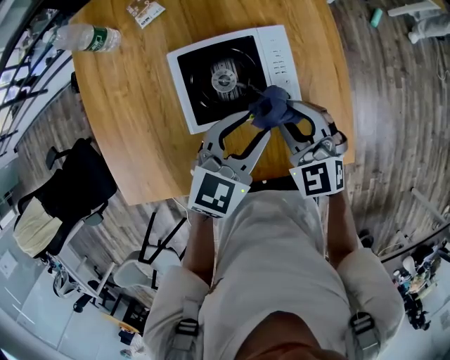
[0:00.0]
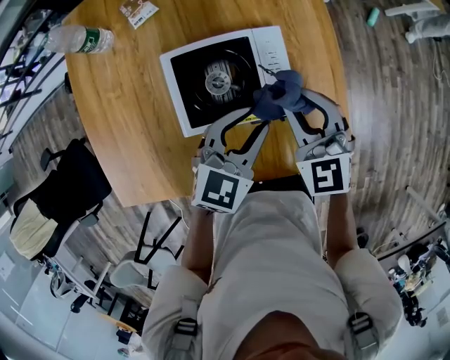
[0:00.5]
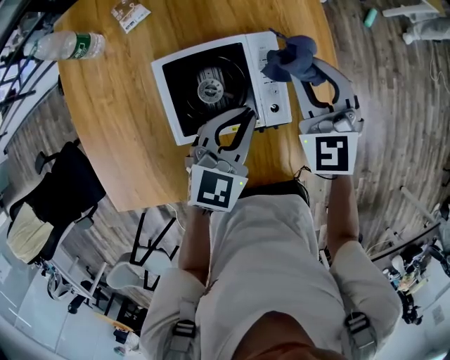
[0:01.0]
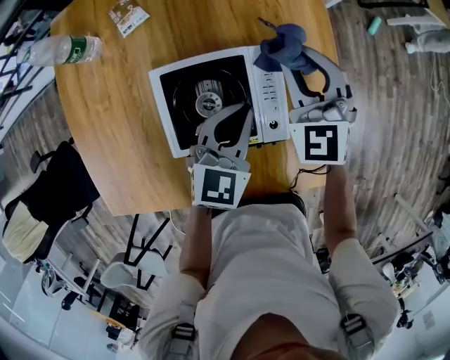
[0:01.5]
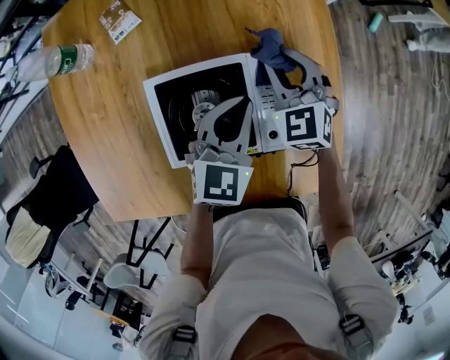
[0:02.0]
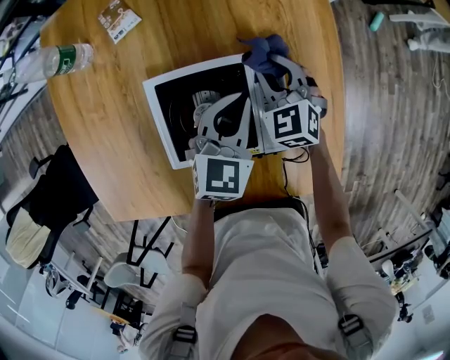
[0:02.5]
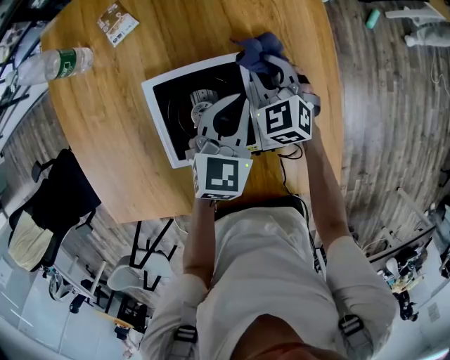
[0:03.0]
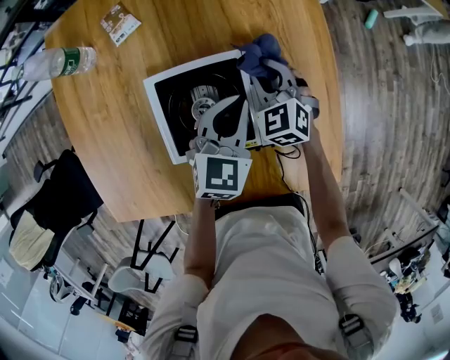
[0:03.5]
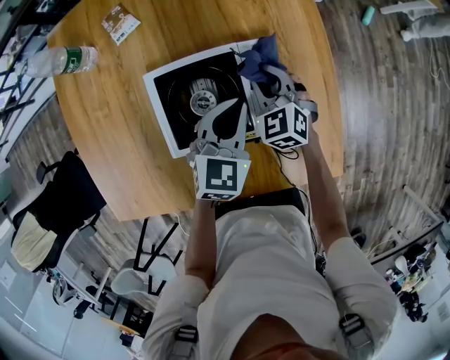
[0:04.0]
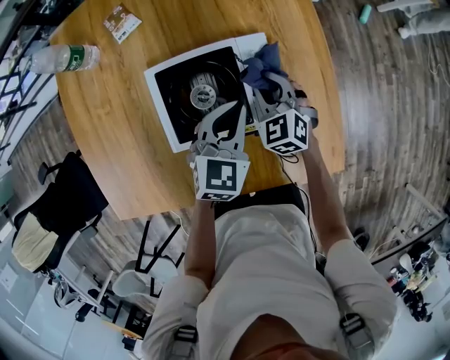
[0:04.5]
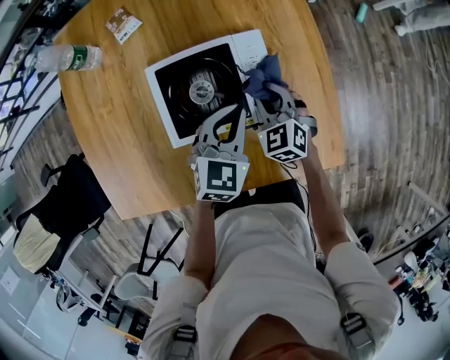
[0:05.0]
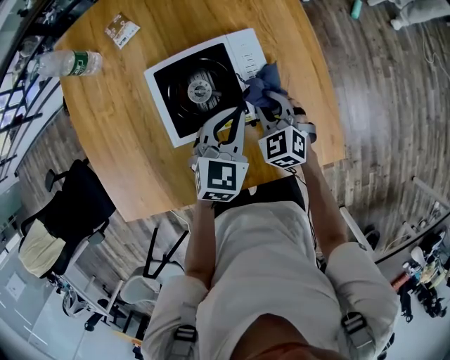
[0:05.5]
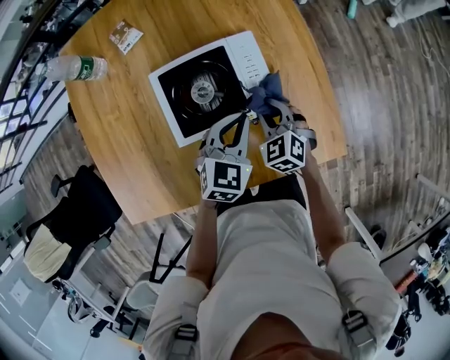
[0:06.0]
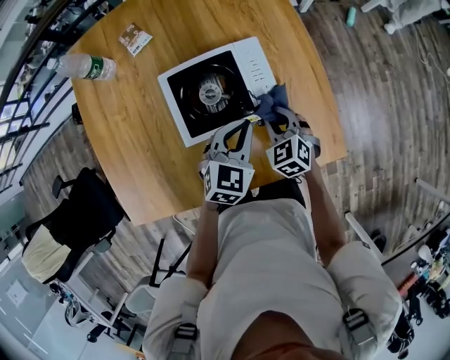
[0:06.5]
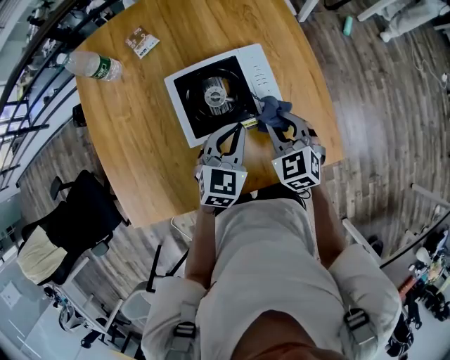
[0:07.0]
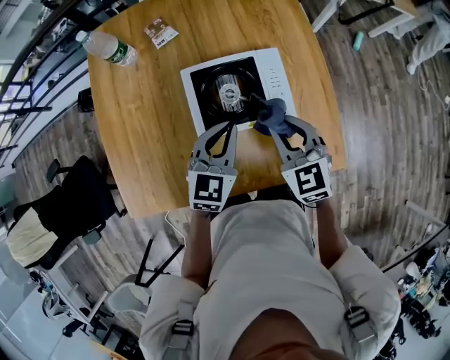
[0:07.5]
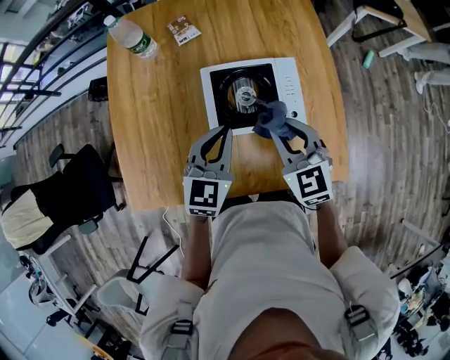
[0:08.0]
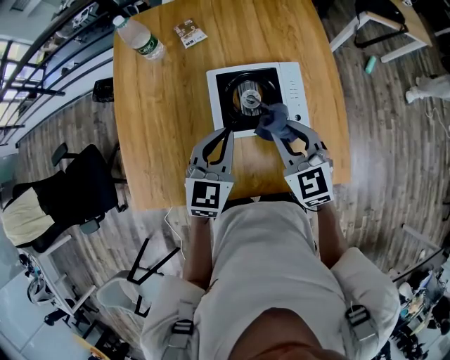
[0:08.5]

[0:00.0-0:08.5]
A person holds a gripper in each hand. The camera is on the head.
0:00.0 to 0:02.0: The right gripper goes some 20 cm forward. Meanwhile the left gripper moves forward and downward, some 15 cm, and closes its fingers.
0:02.0 to 0:04.0: The right gripper is displaced backward by about 5 cm.
0:04.0 to 0:06.5: Both grippers travel together backward, about 15 cm.
0:06.5 to 0:08.5: The left gripper heads to the left and upward, covering roughly 20 cm, and turns by roughly 20 degrees. Meanwhile the right gripper goes approximately 20 cm upward and to the left, and turns by approximately 20 degrees.

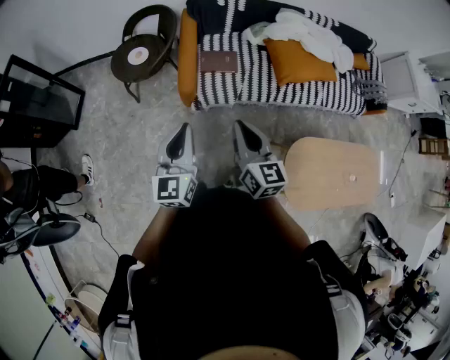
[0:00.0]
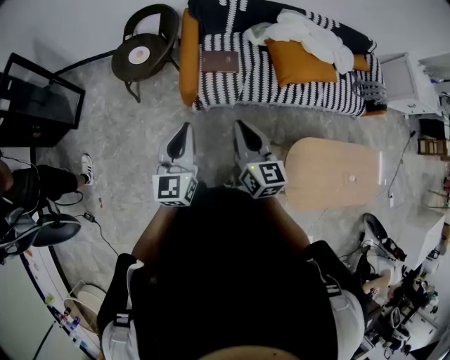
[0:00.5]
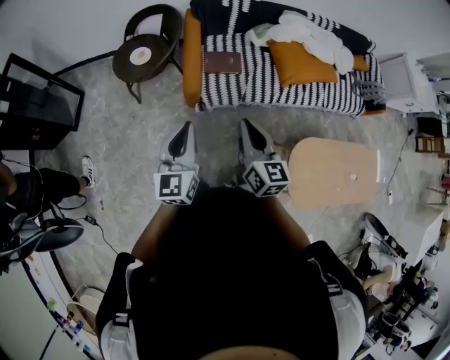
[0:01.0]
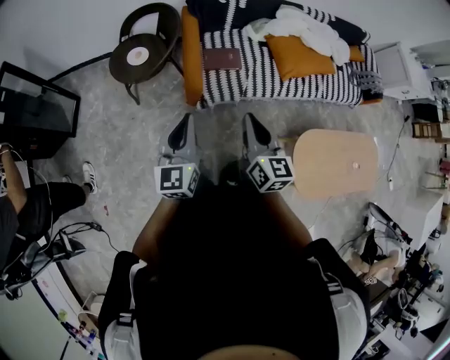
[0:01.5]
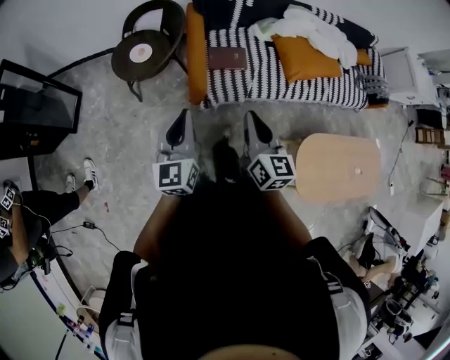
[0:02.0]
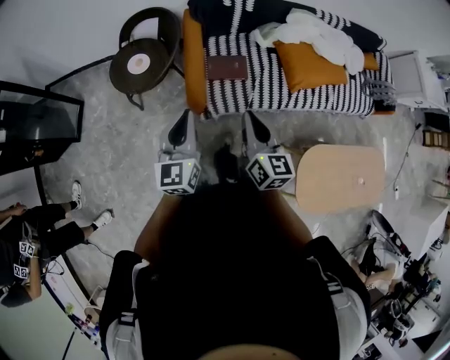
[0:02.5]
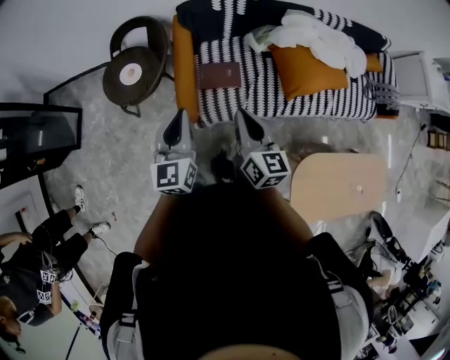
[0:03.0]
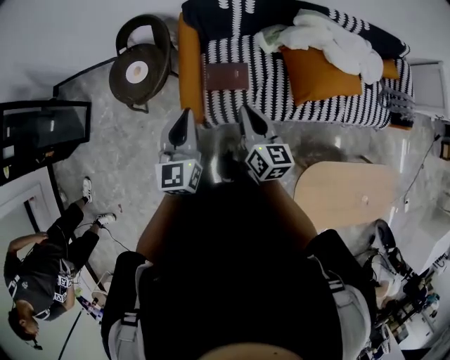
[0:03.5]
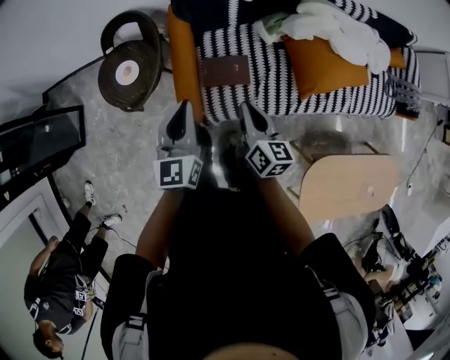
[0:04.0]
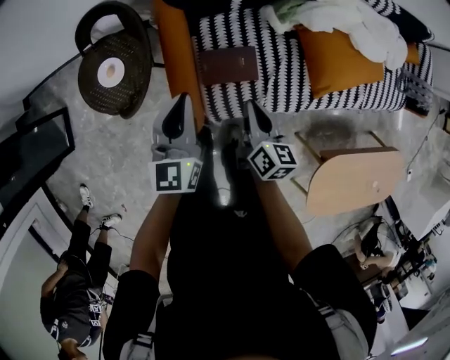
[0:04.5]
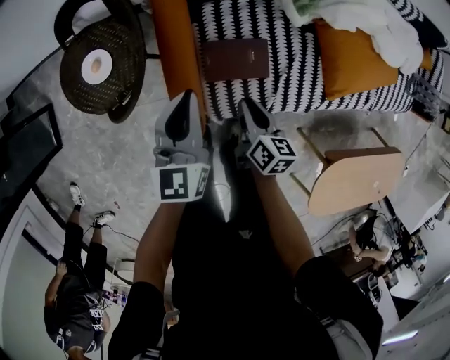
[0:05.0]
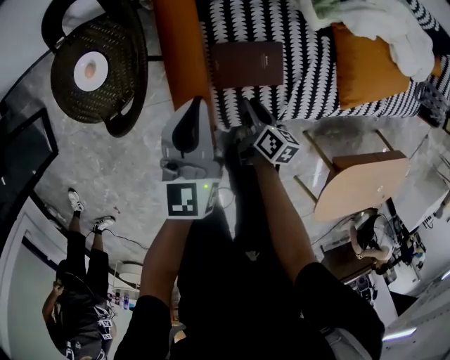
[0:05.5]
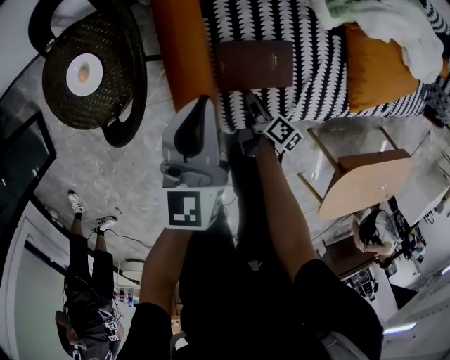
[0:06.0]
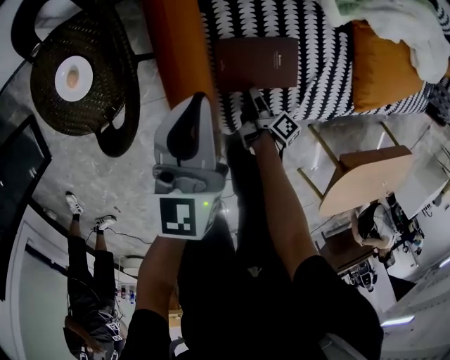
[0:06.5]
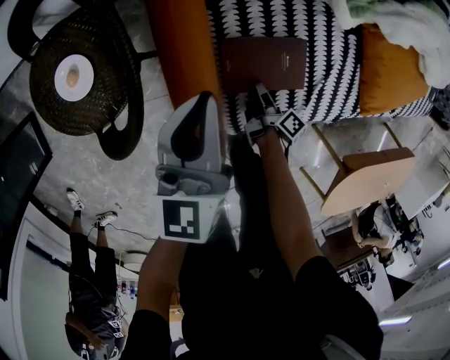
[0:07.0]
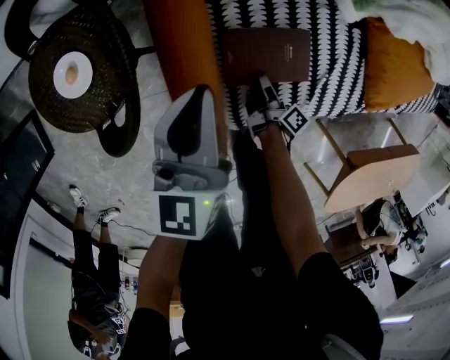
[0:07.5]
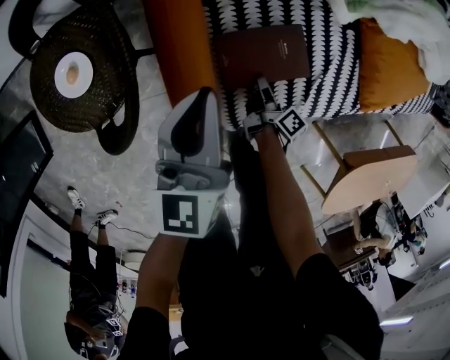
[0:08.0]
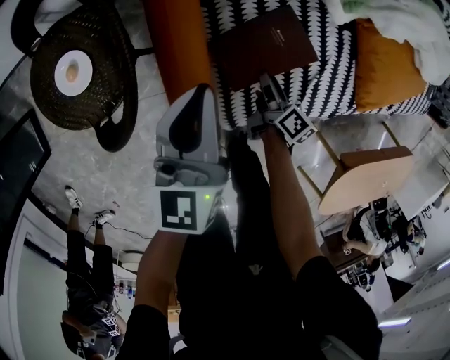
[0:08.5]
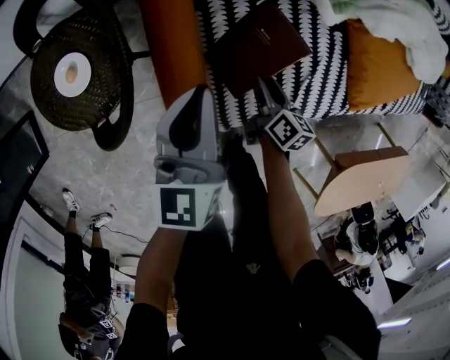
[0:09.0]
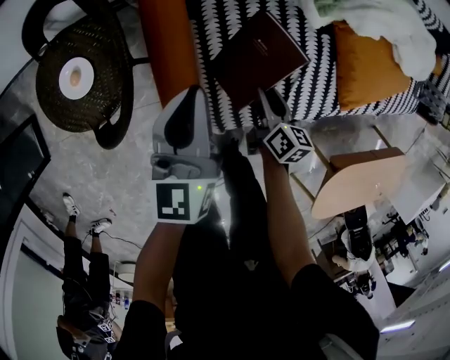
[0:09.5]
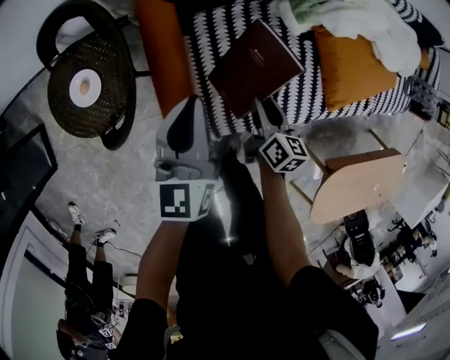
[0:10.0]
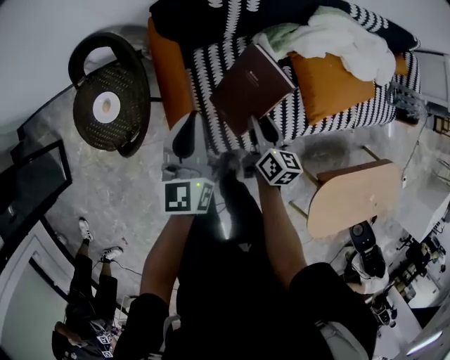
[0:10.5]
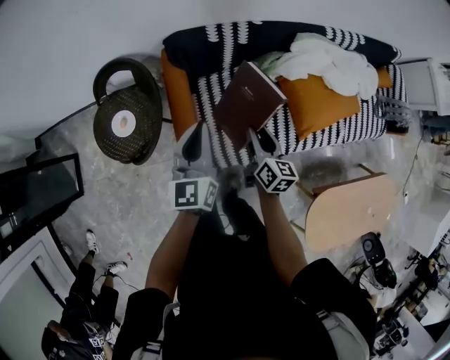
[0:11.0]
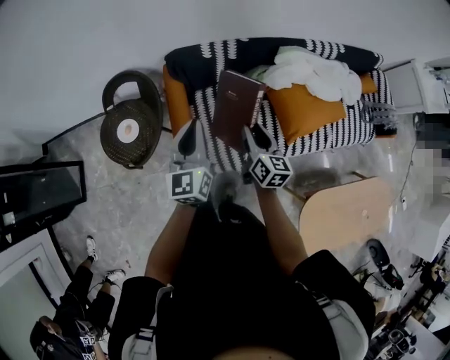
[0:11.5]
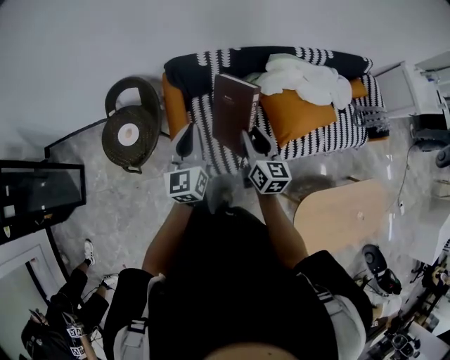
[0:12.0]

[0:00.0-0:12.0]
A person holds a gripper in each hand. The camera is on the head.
0:00.0 to 0:02.0: Both grippers travel together to the left and forward, about 10 cm.
0:02.0 to 0:04.0: The right gripper travels forward and downward by about 35 cm, and turns by some 20 degrees. Meanwhile the left gripper heads forward and to the right, covering roughly 35 cm.
0:04.0 to 0:06.0: The right gripper goes some 50 cm downward, rotates about 50 degrees, and opens, while the left gripper goes about 30 cm downward and forward.
0:06.0 to 0:08.0: The right gripper changes place by some 5 cm.
0:08.0 to 0:10.0: The left gripper moves upward, approximately 10 cm. The right gripper is displaced upward by approximately 20 cm, and rolls counterclockwise, seen from behind, by about 40 degrees.
0:10.0 to 0:12.0: The right gripper travels upward by about 40 cm, and rotates approximately 30 degrees. Meanwhile the left gripper travels upward and backward by some 30 cm.

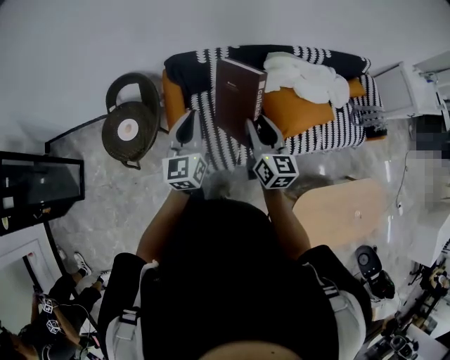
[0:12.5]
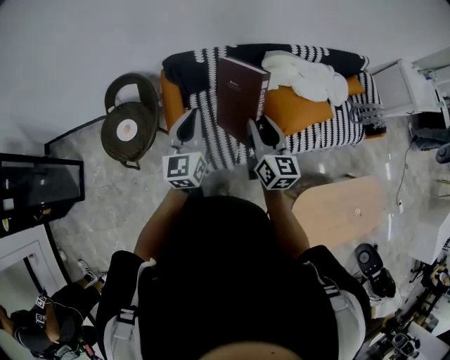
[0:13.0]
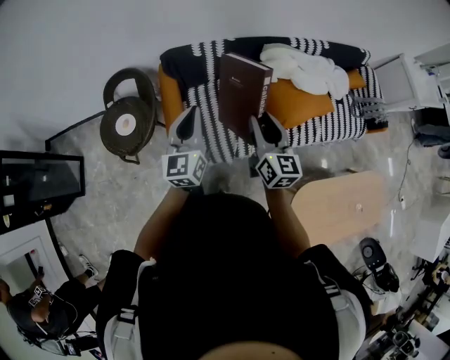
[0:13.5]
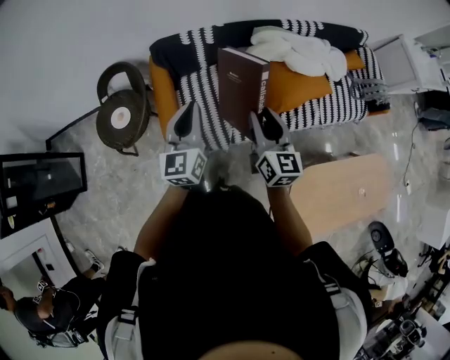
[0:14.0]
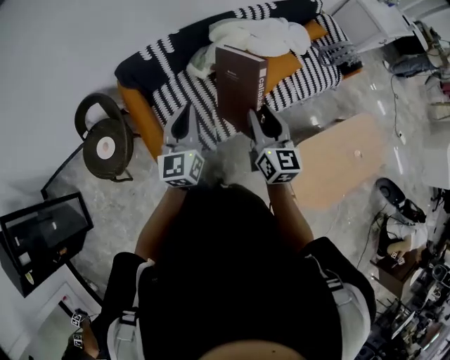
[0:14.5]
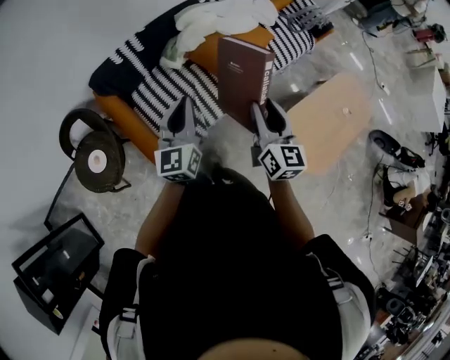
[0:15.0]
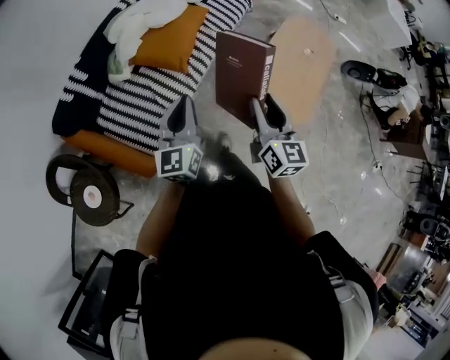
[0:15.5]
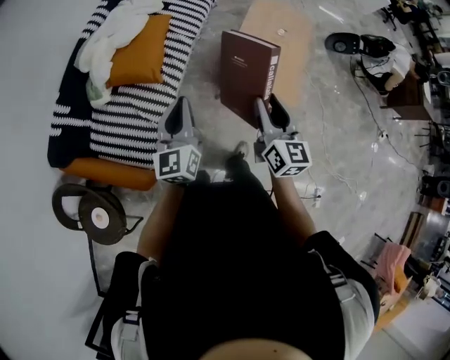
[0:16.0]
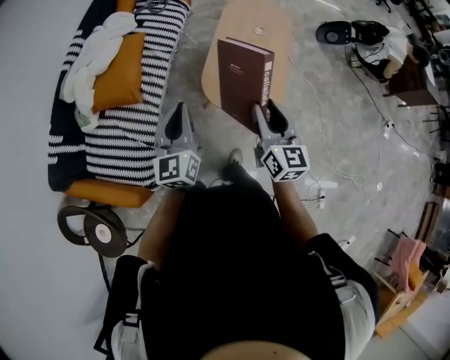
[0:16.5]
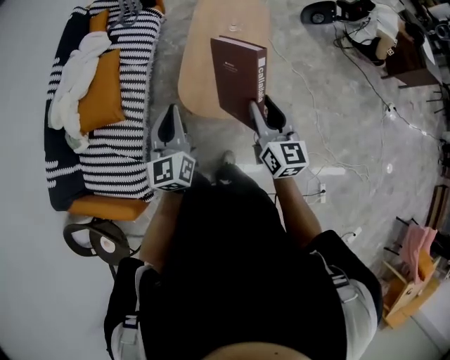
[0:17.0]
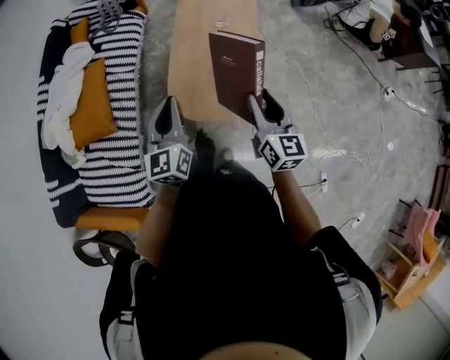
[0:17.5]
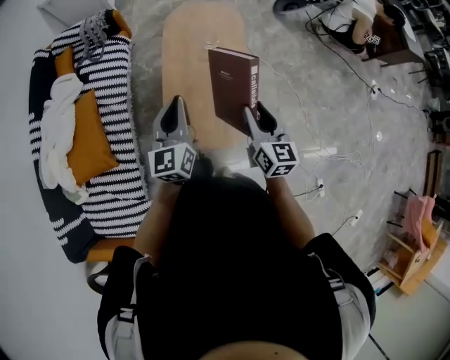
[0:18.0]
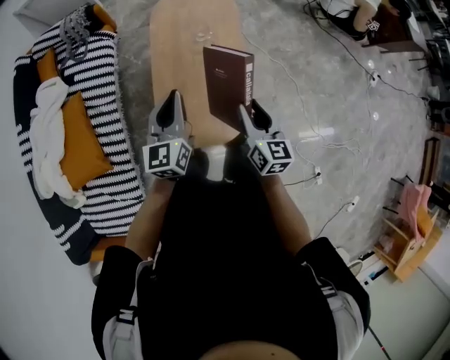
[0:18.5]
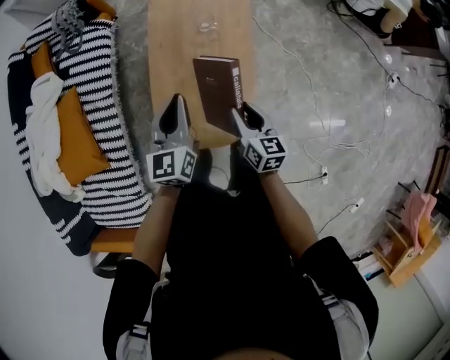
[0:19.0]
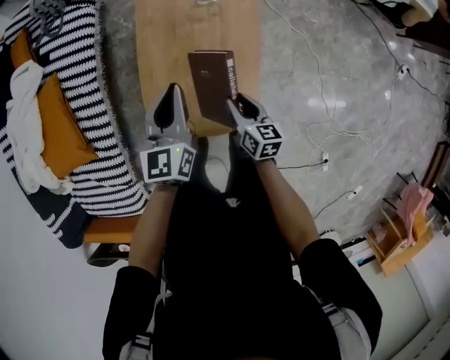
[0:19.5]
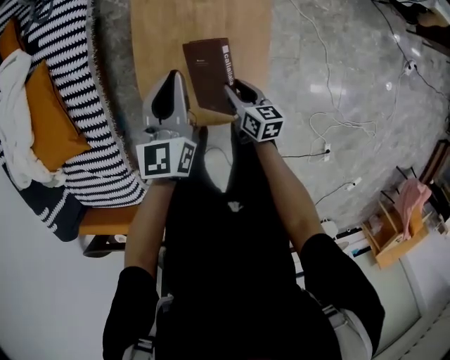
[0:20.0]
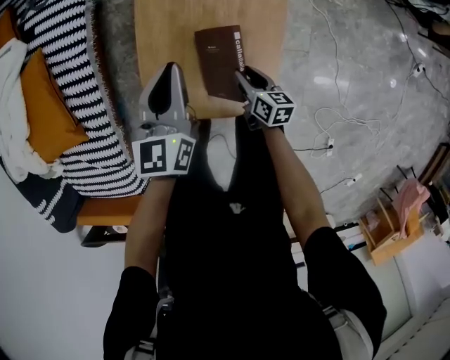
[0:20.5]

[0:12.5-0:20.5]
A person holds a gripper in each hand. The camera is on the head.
0:12.5 to 0:14.5: The left gripper heads to the right, covering about 15 cm. The right gripper is displaced to the right and backward by roughly 15 cm.
0:14.5 to 0:16.5: Both grippers are carried about 50 cm. The right gripper changes its angle by roughly 50 degrees, while the left gripper changes its angle by approximately 50 degrees.
0:16.5 to 0:18.5: The left gripper goes about 40 cm forward and to the right, and rotates approximately 20 degrees. The right gripper moves forward, to the right and downward, some 35 cm, and turns by some 20 degrees.
0:18.5 to 0:20.5: The left gripper goes some 25 cm downward. Meanwhile the right gripper moves downward, roughly 40 cm, and rotates roughly 40 degrees.
